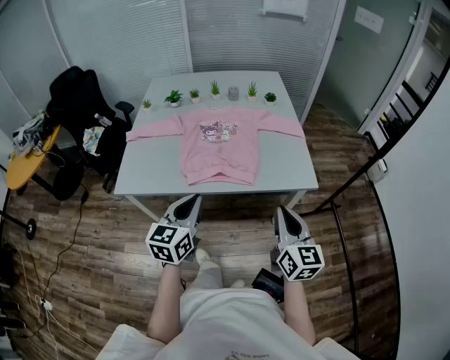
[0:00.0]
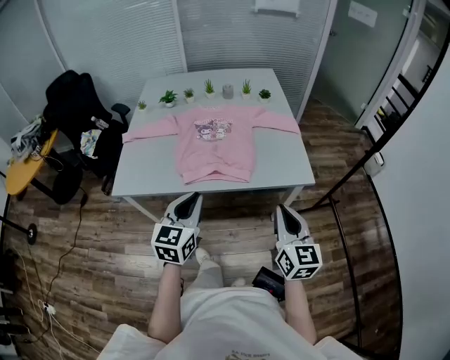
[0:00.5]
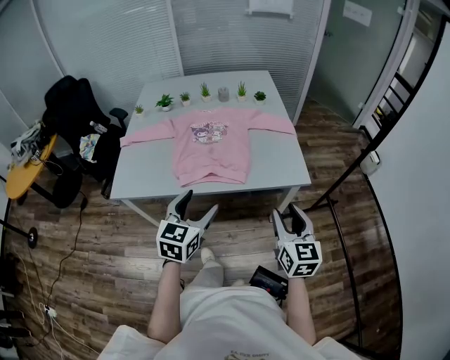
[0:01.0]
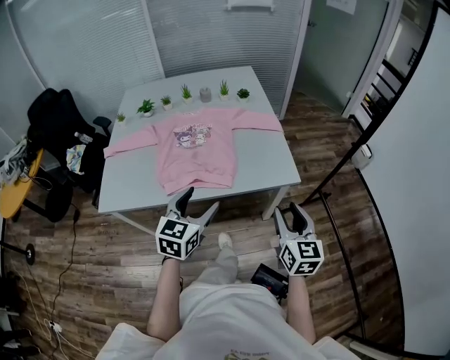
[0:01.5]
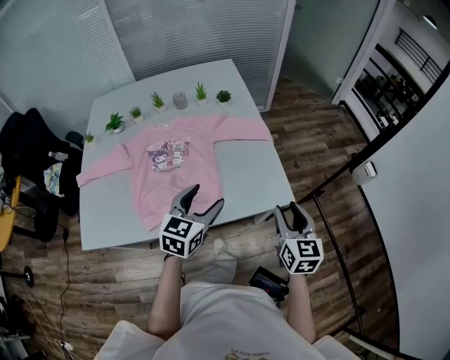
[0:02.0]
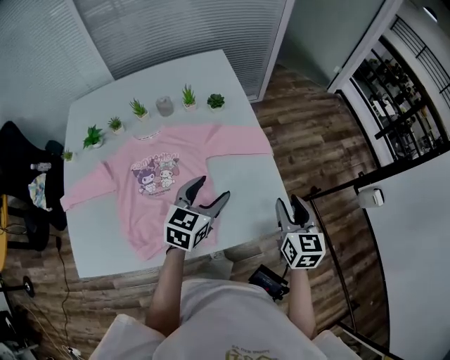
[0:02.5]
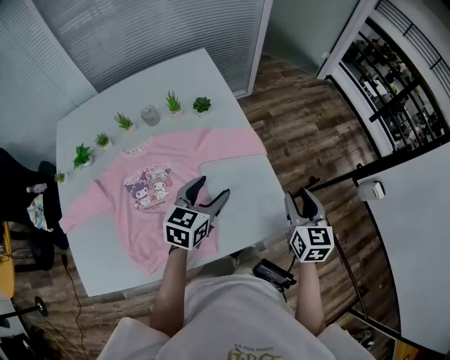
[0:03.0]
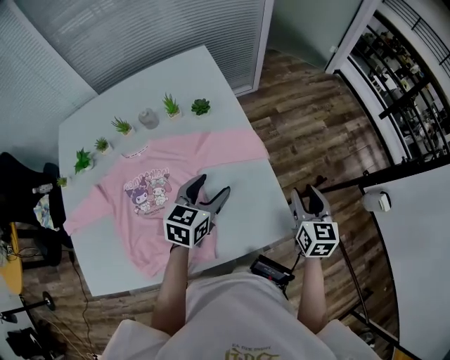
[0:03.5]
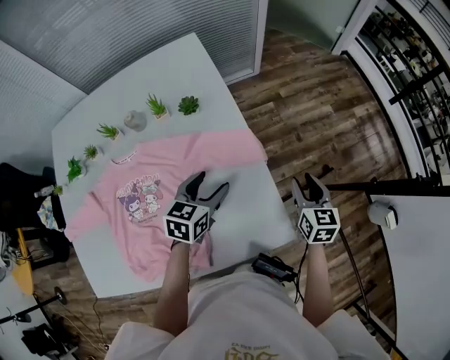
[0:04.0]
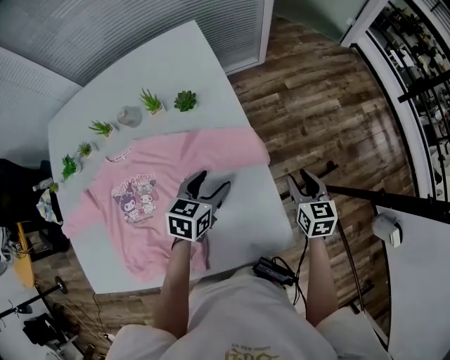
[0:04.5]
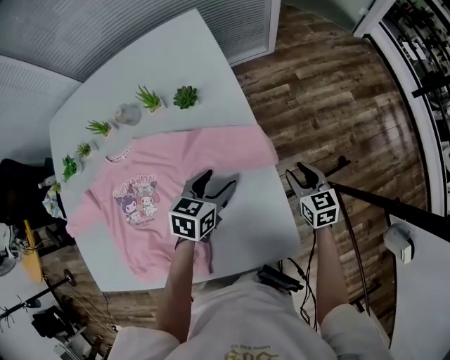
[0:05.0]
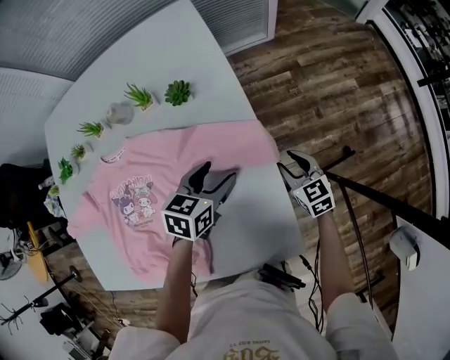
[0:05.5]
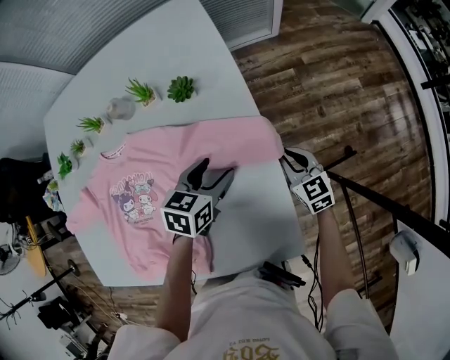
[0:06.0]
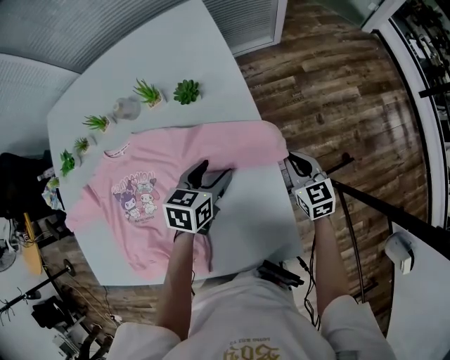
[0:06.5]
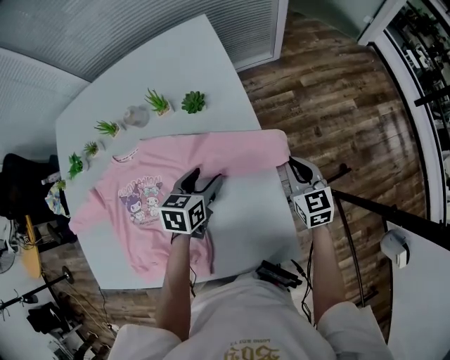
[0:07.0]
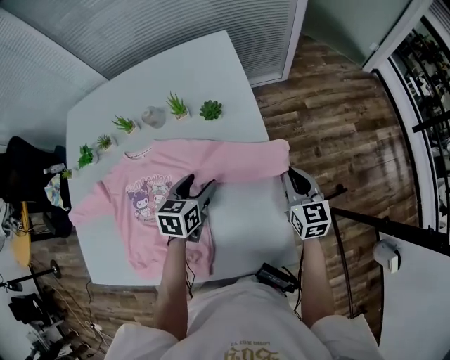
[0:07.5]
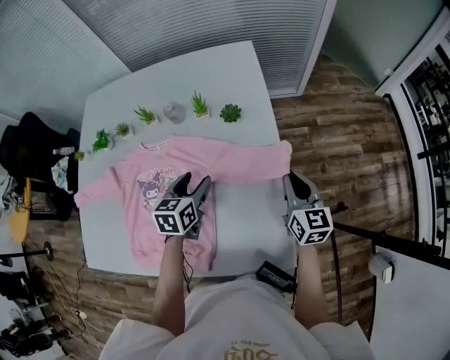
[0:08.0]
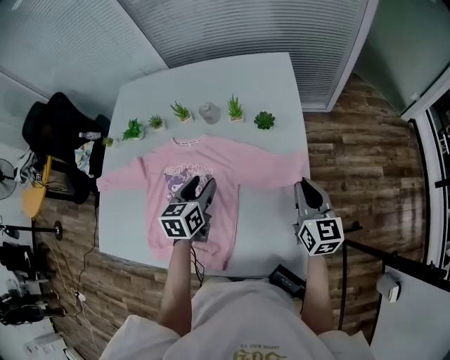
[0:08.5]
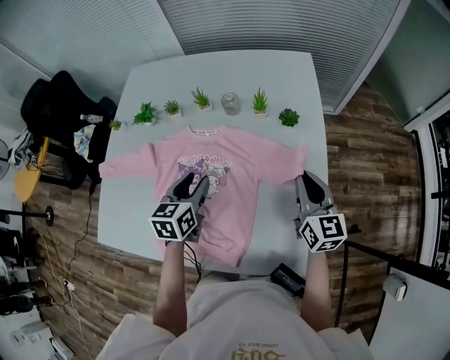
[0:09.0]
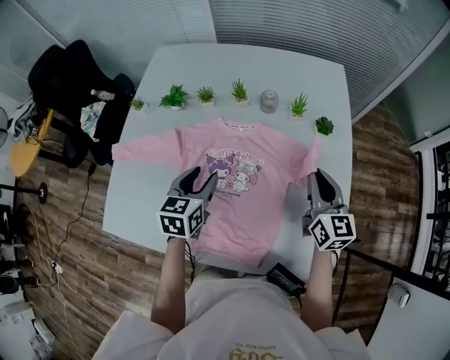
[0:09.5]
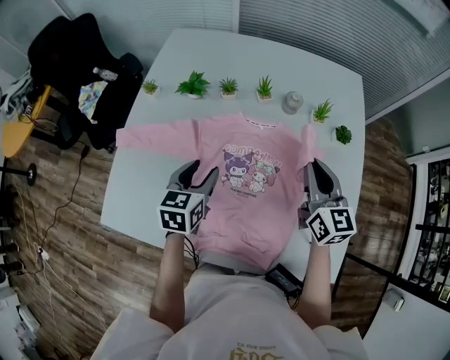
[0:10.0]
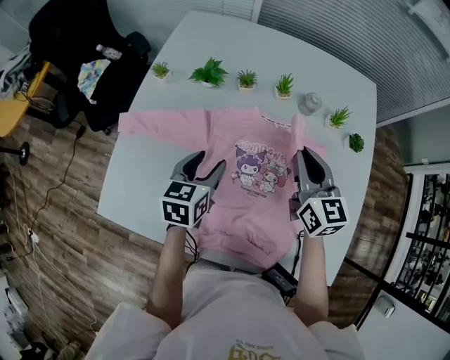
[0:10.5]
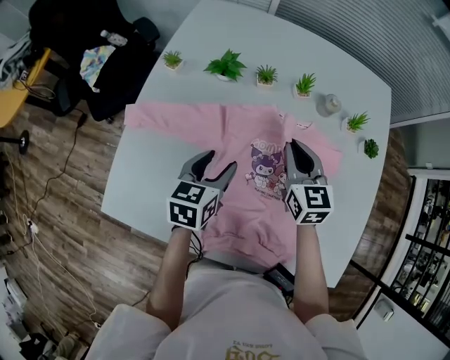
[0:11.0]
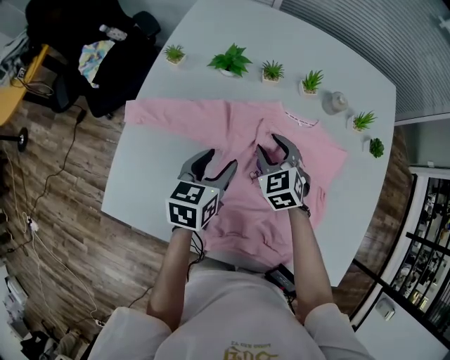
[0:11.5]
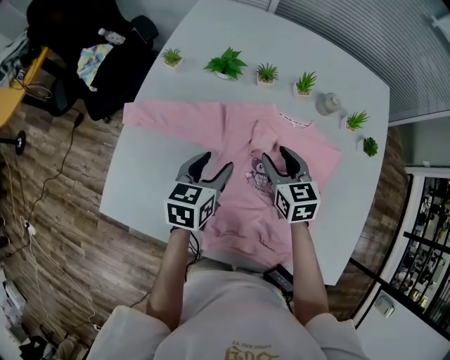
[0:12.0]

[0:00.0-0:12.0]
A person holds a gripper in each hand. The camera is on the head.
0:00.0 to 0:02.0: Both grippers travel together forward and to the right, roughly 25 cm. The left gripper swivels approximately 20 degrees, and opens up. The right gripper opens its fingers.
0:02.0 to 0:04.0: Both grippers move forward, roughly 30 cm.
0:04.0 to 0:06.0: The right gripper moves downward, forward and to the left, roughly 20 cm, swivels approximately 30 degrees, and closes up; the left gripper moves downward and forward, some 10 cm.
0:06.0 to 0:08.0: The right gripper moves upward, some 20 cm, and rotates roughly 20 degrees. The left gripper is displaced to the left and upward by approximately 15 cm, and turns by roughly 30 degrees.
0:08.0 to 0:10.0: The grippers both shift to the left by approximately 35 cm.
0:10.0 to 0:12.0: The left gripper is displaced to the left by some 5 cm. Meanwhile the right gripper is displaced to the left and downward by approximately 25 cm, swivels roughly 30 degrees, and opens up.

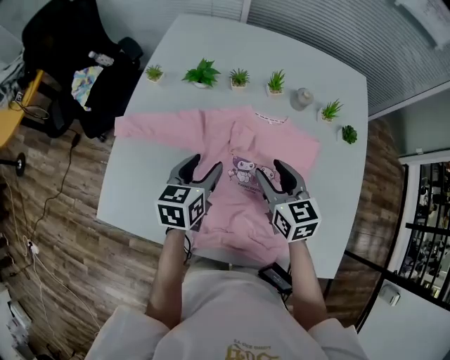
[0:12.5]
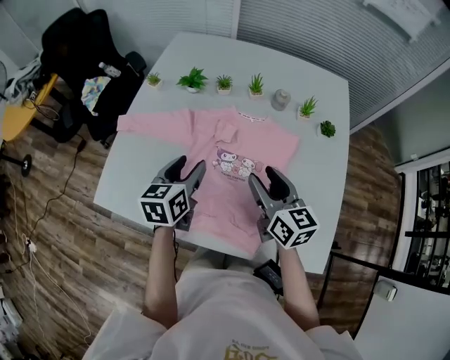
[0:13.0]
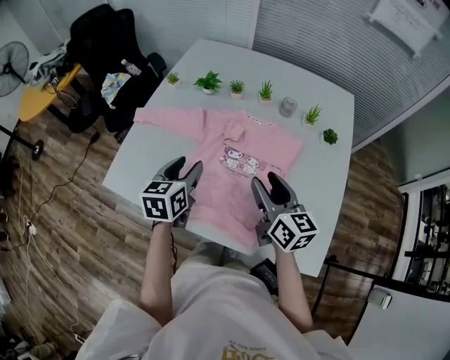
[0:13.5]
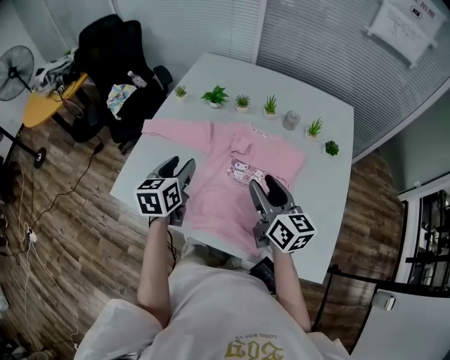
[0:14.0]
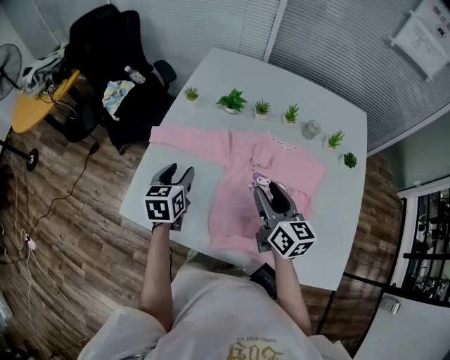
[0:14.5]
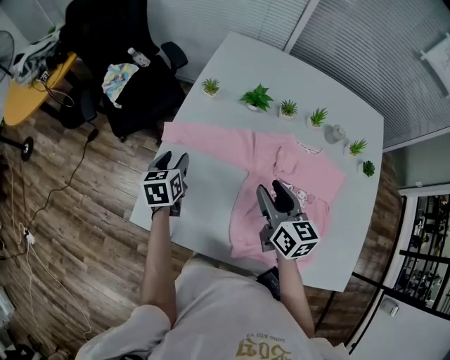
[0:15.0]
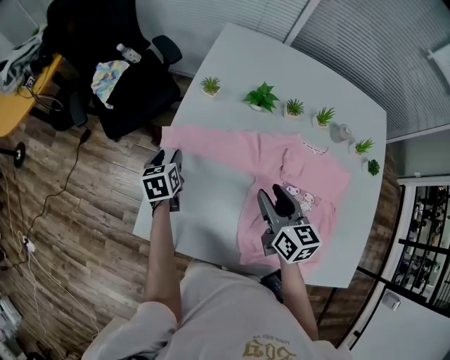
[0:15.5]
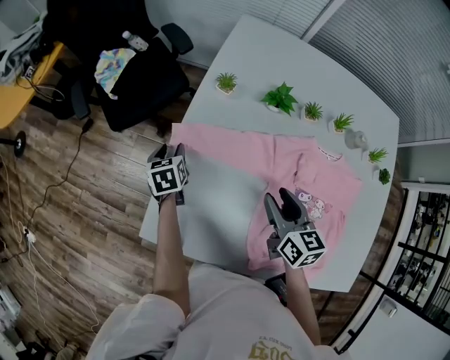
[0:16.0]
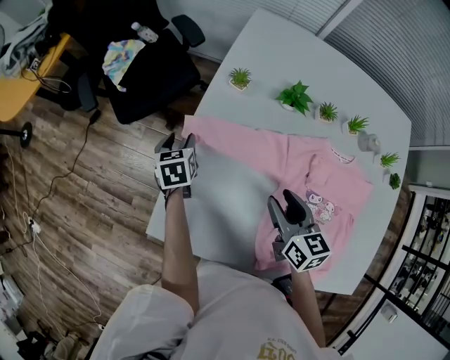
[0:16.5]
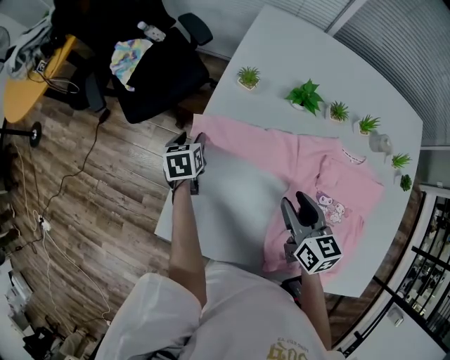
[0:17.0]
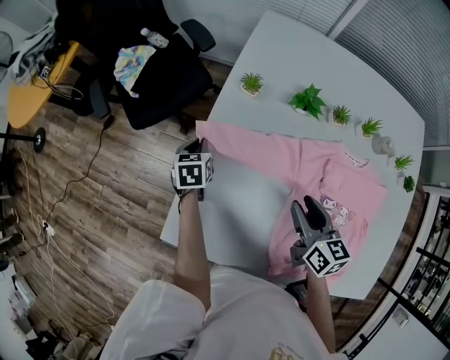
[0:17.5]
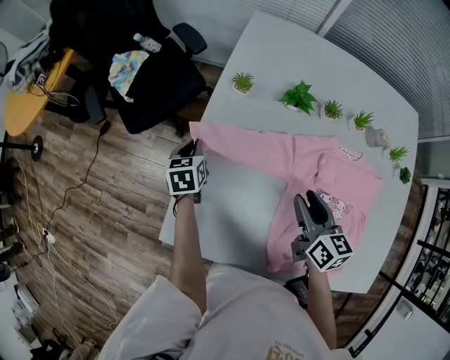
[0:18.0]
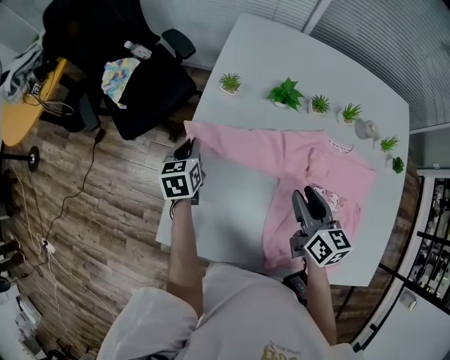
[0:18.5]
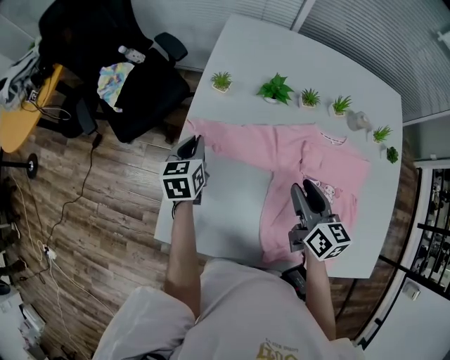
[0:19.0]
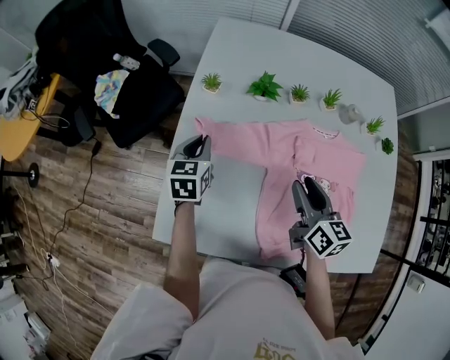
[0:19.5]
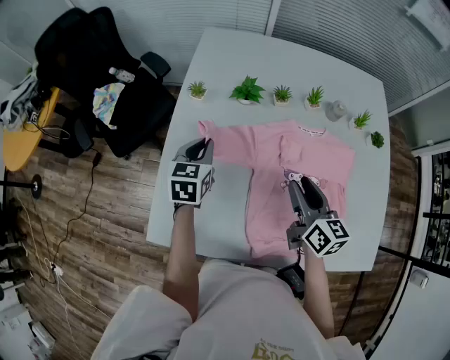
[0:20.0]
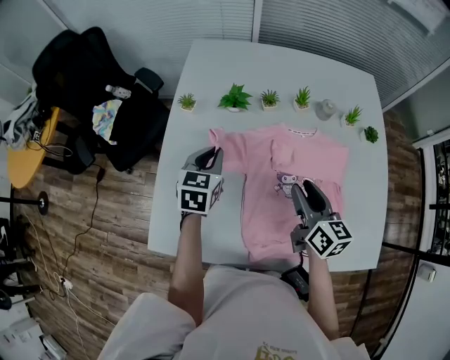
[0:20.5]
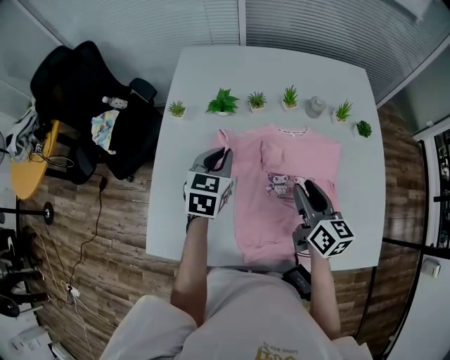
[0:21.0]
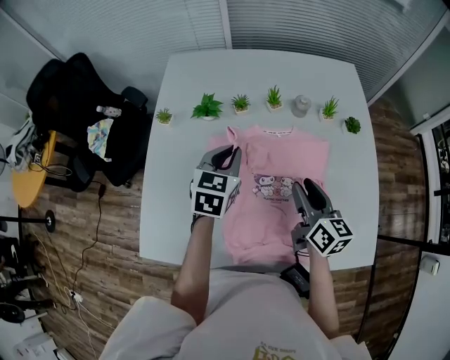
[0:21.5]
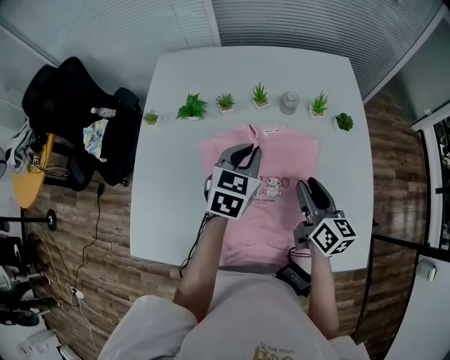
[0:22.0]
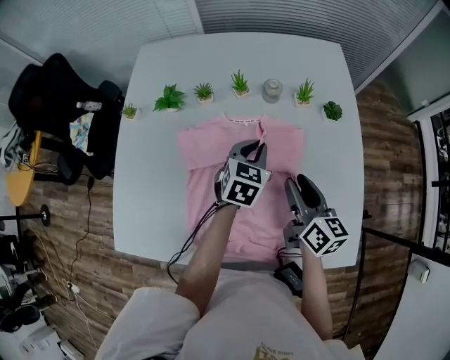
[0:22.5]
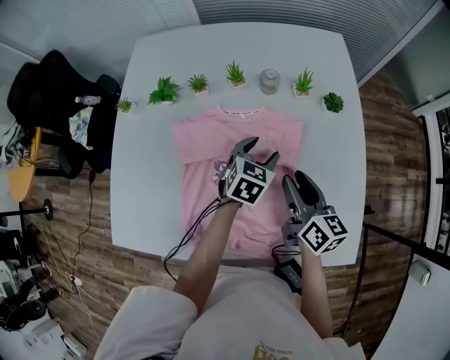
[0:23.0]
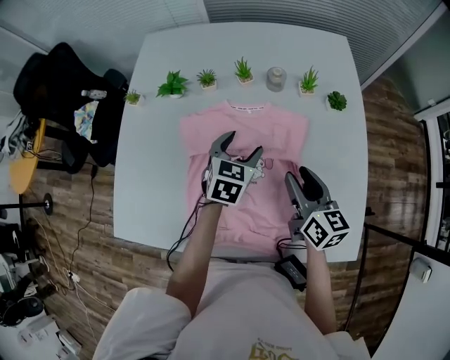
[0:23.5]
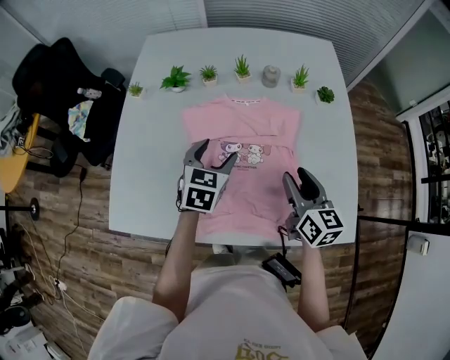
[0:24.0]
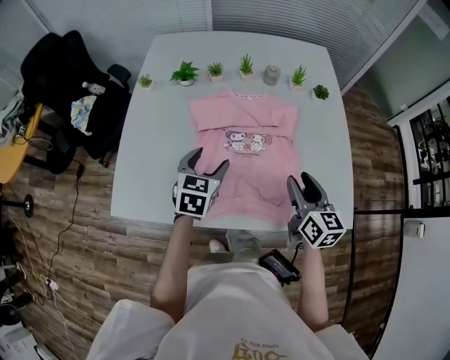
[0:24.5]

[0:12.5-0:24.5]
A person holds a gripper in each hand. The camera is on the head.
0:12.5 to 0:14.5: The right gripper heads to the left and upward, covering about 10 cm, while the left gripper is displaced to the left by some 15 cm.
0:14.5 to 0:16.5: The right gripper moves to the left, forward and downward, approximately 20 cm, while the left gripper is displaced forward, to the left and downward by approximately 30 cm.
0:16.5 to 0:18.5: The left gripper ends up approximately 5 cm from where it was, and closes up, while the right gripper is displaced to the right by roughly 5 cm.
0:18.5 to 0:20.5: The left gripper shifts roughly 25 cm to the right and upward, and changes its angle by roughly 30 degrees; the right gripper shifts approximately 10 cm to the right.
0:20.5 to 0:22.5: The left gripper goes approximately 35 cm to the right. The right gripper travels to the right by about 20 cm.
0:22.5 to 0:24.5: The left gripper heads backward and to the left, covering approximately 25 cm, and opens its fingers. Meanwhile the right gripper goes about 15 cm backward.

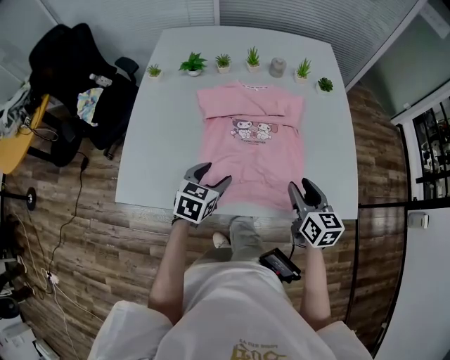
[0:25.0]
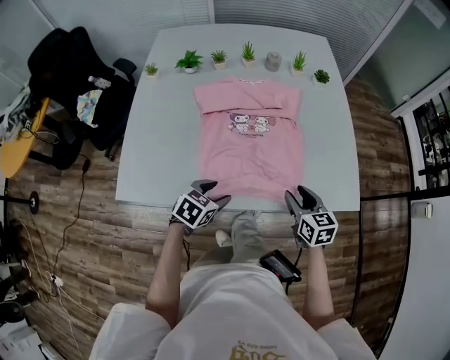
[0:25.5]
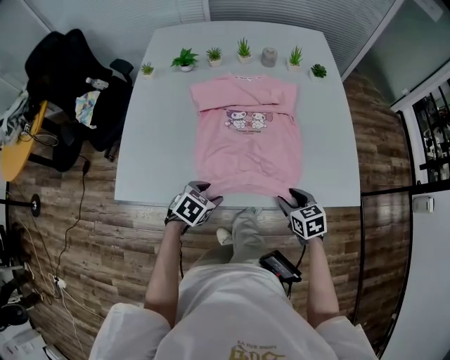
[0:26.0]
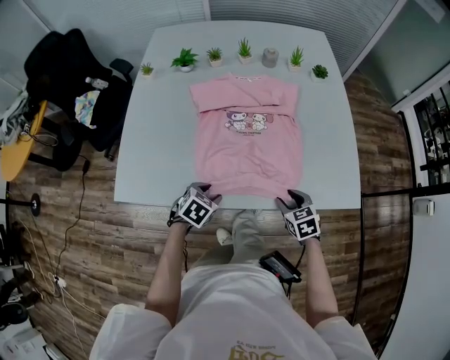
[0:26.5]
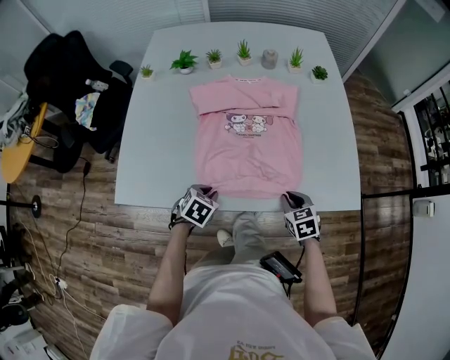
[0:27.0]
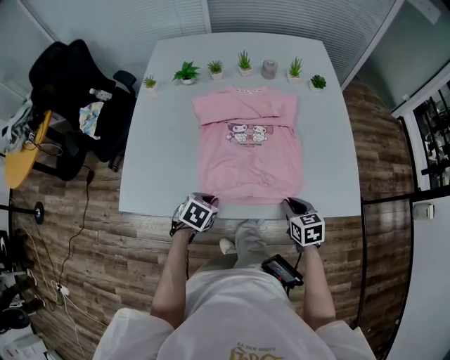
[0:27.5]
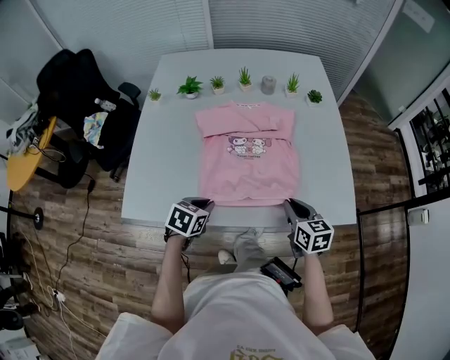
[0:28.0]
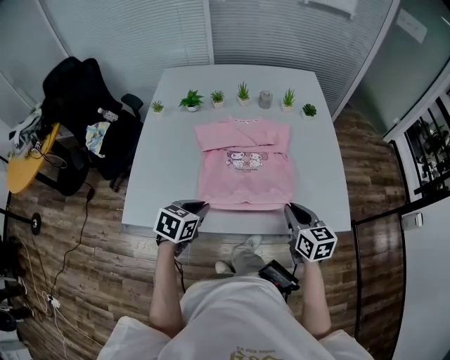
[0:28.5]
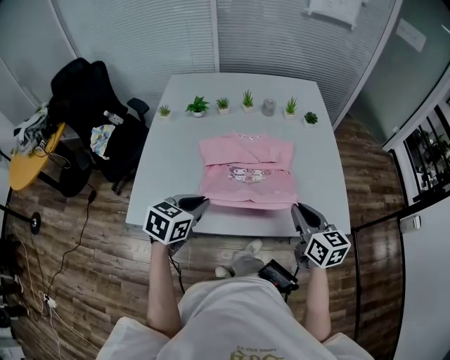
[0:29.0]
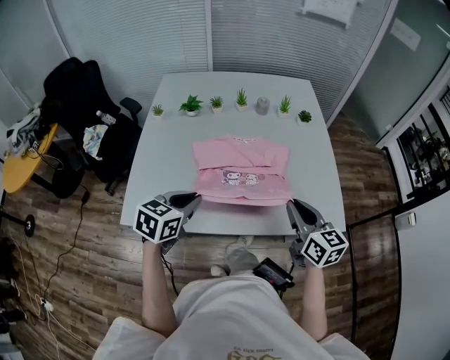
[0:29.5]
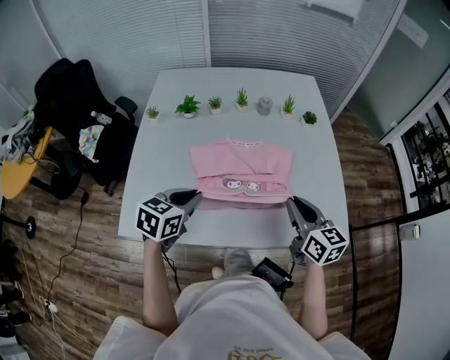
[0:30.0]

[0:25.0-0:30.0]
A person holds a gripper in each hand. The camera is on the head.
0:25.0 to 0:27.5: The left gripper travels downward and backward by approximately 10 cm, turns by some 30 degrees, and closes up, while the right gripper travels downward by roughly 10 cm, rotates roughly 20 degrees, and closes.
0:27.5 to 0:30.0: The grippers both shift upward by about 20 cm. The left gripper changes its angle by about 30 degrees. The right gripper turns by roughly 30 degrees.
